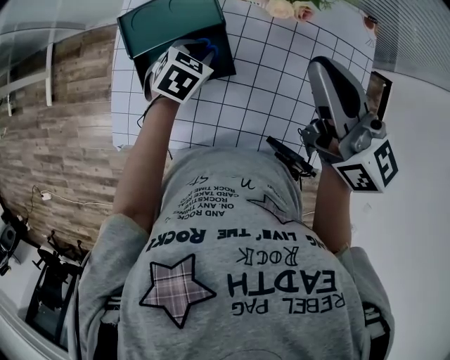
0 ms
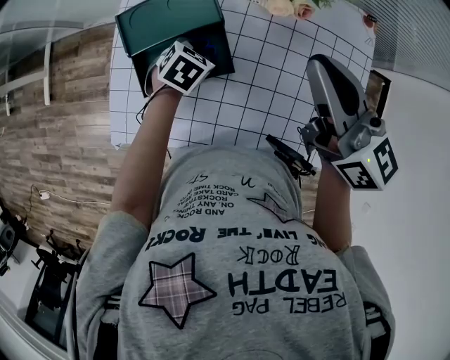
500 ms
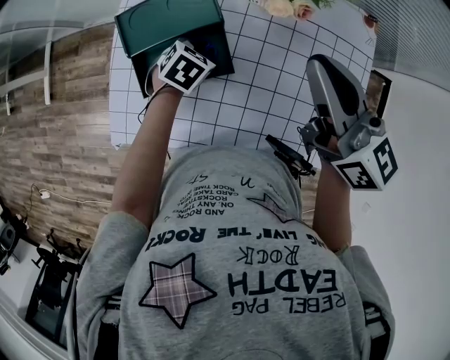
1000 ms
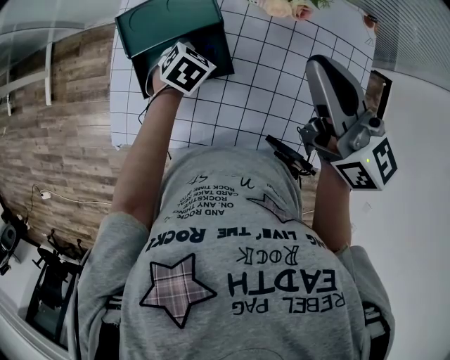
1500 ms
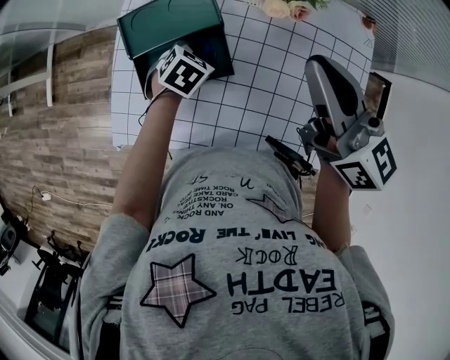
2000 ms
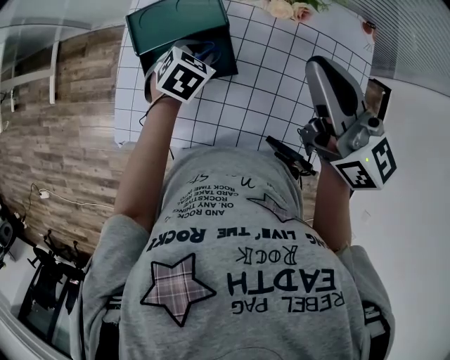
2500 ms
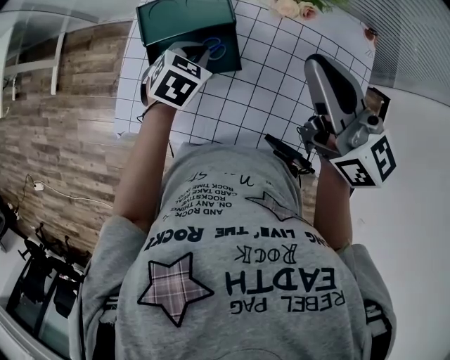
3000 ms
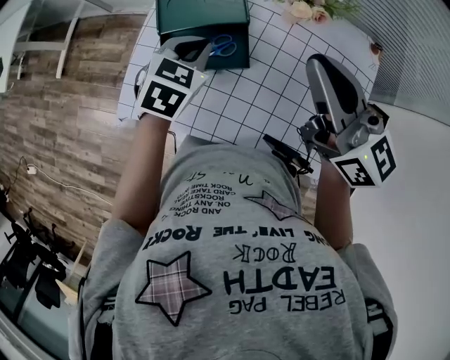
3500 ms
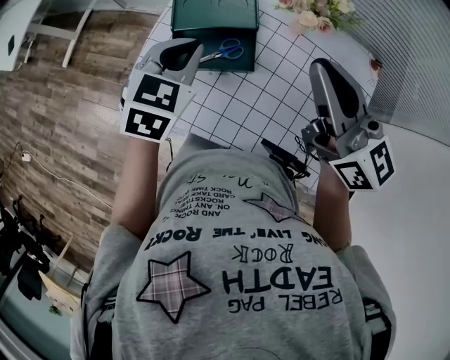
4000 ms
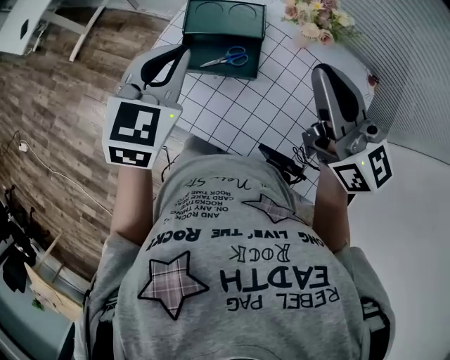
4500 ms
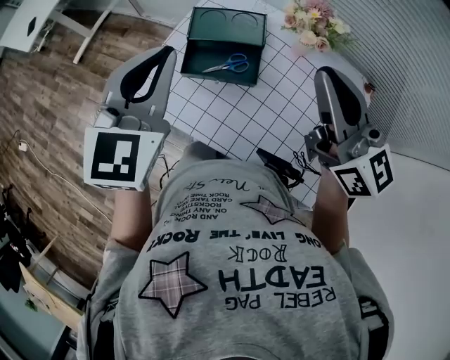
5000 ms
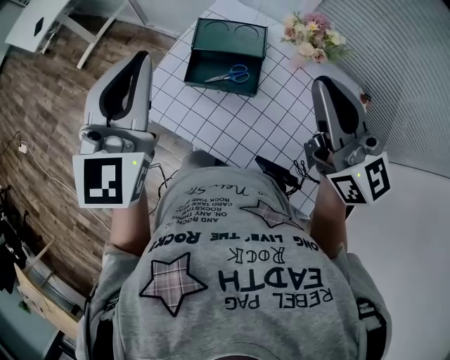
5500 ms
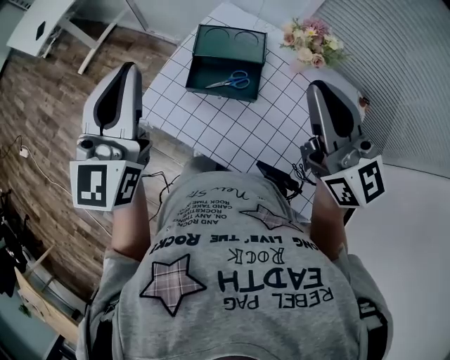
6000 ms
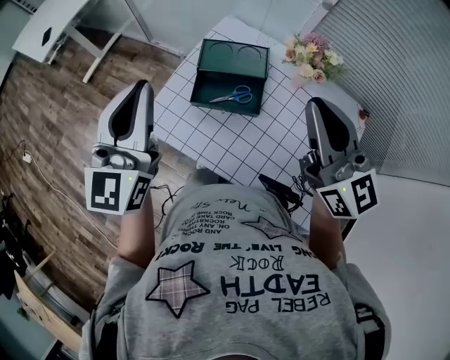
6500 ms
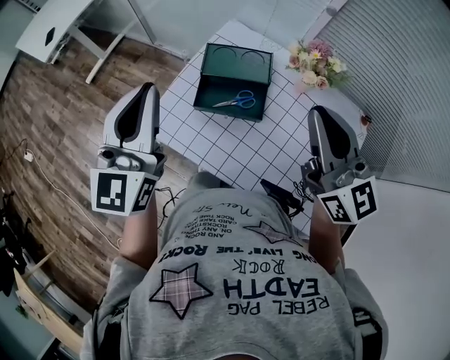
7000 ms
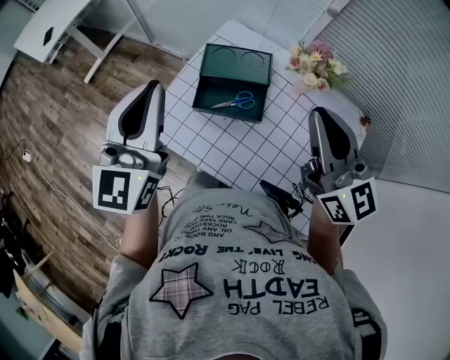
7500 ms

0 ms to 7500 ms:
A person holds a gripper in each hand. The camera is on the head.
0 ms to 2000 ms: The grippers move only a little.
2000 ms to 4000 ms: The left gripper shifts roughly 25 cm upward, changes its angle by some 30 degrees, and closes; the right gripper shifts some 5 cm upward.
4000 ms to 5500 ms: The left gripper is displaced upward and to the left by roughly 20 cm, and tilts its fingers roughly 40 degrees upward. Meanwhile the right gripper is displaced upward by some 5 cm.
5500 ms to 7500 ms: The grippers make only small movements.

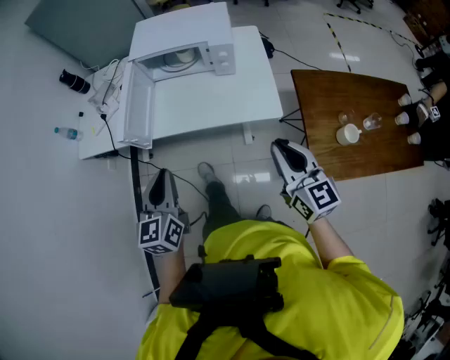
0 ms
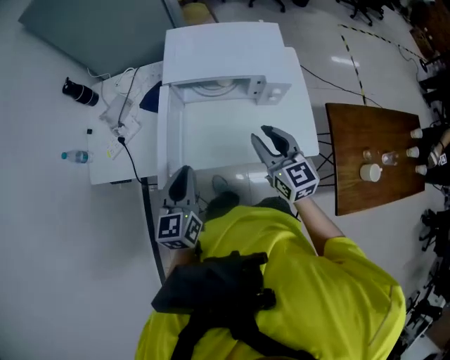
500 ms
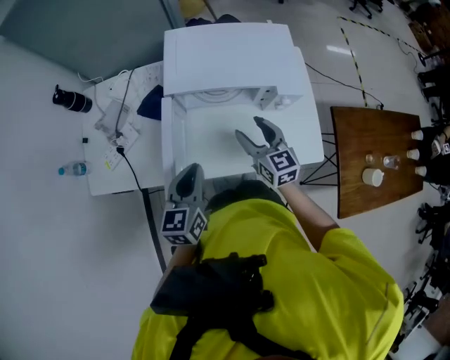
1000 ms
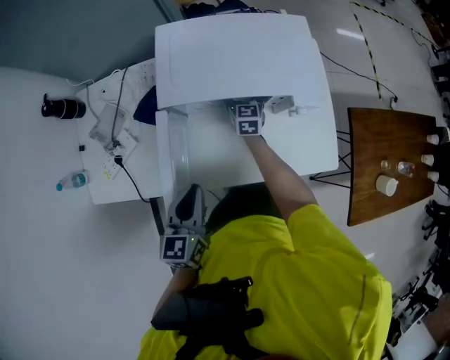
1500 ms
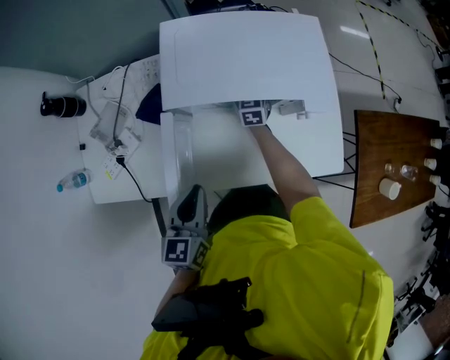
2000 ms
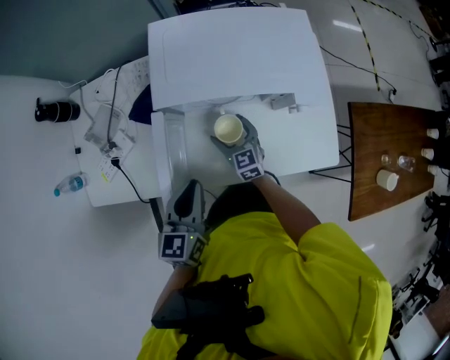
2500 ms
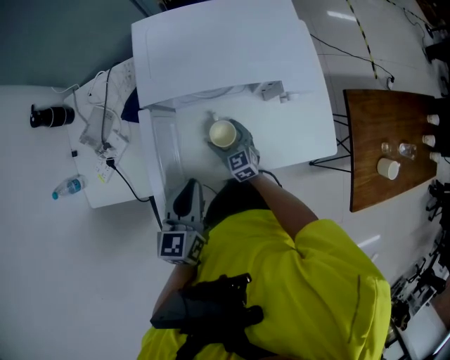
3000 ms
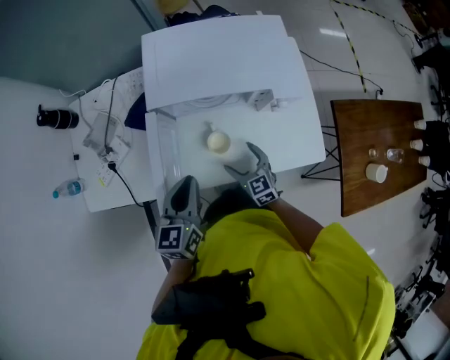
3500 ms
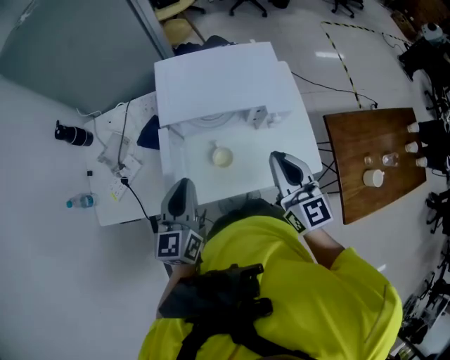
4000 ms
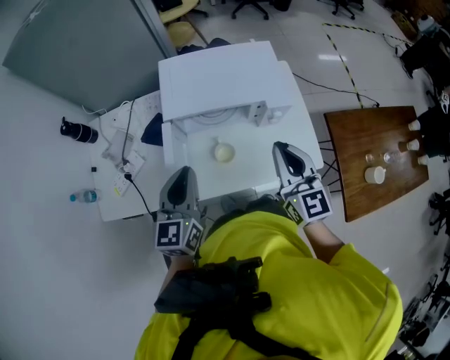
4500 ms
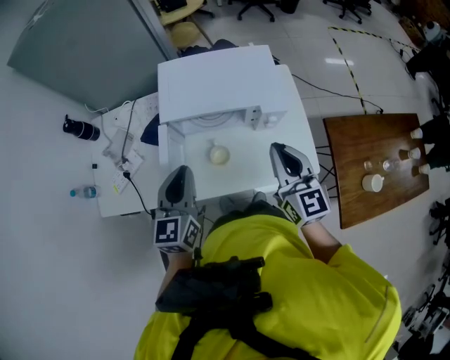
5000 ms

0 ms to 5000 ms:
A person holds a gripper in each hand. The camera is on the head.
0 ms to 2500 ms: The right gripper goes some 60 cm forward, downward and to the left, and opens its fingers, while the left gripper moves forward and to the left, roughly 35 cm.
2500 ms to 5000 ms: The left gripper travels upward by about 15 cm, while the right gripper goes approximately 40 cm upward and to the right, swivels roughly 20 degrees, and closes its fingers.

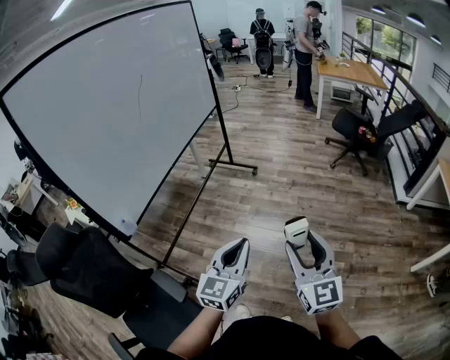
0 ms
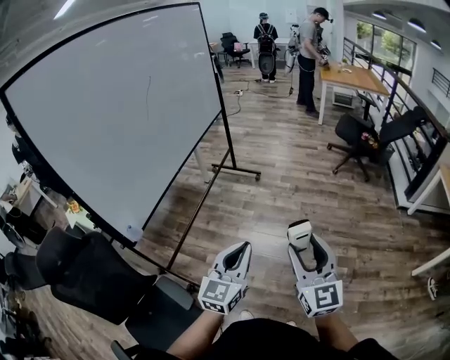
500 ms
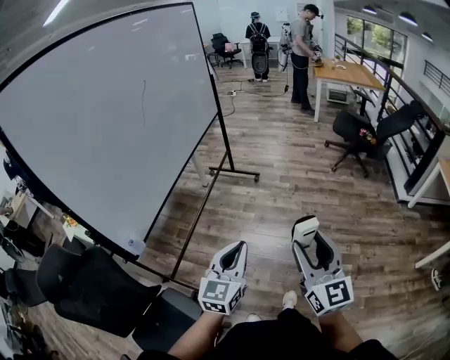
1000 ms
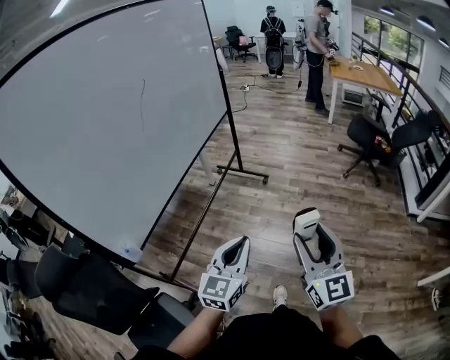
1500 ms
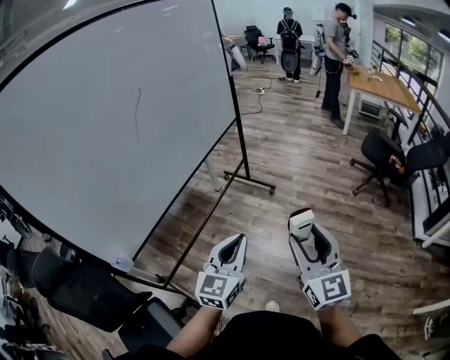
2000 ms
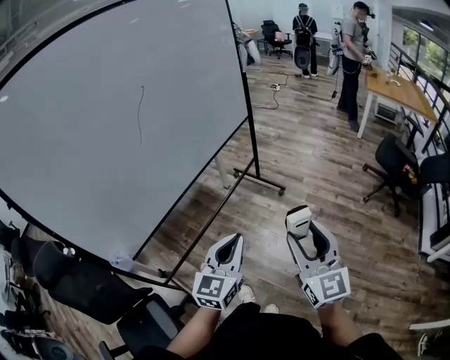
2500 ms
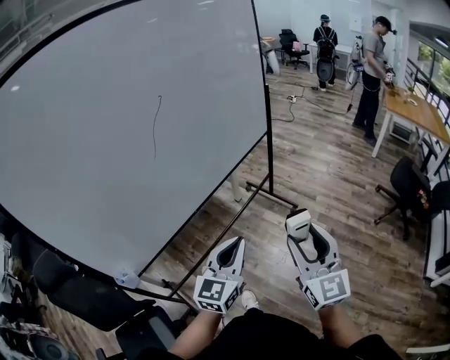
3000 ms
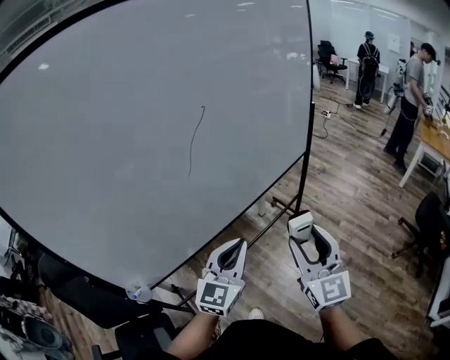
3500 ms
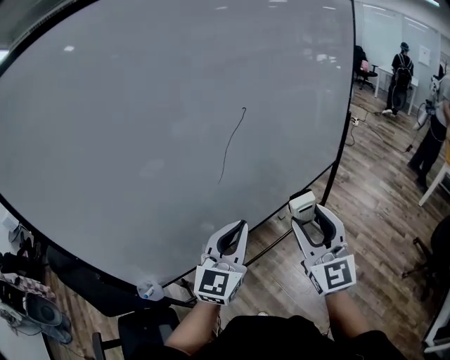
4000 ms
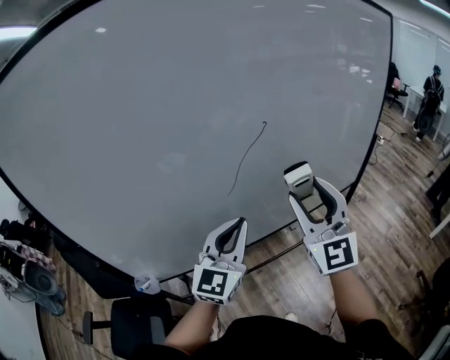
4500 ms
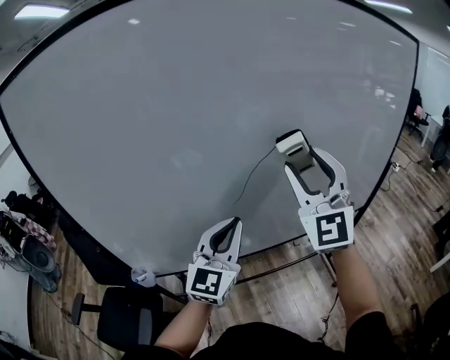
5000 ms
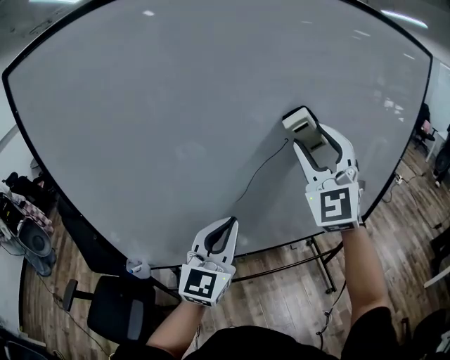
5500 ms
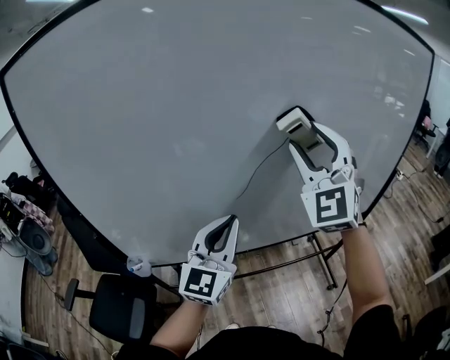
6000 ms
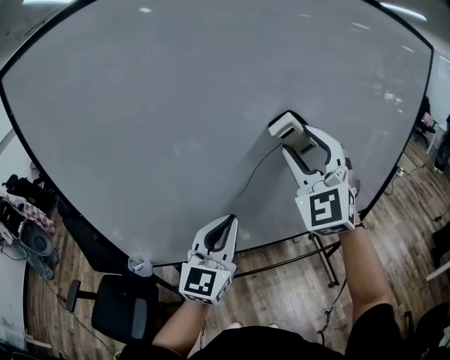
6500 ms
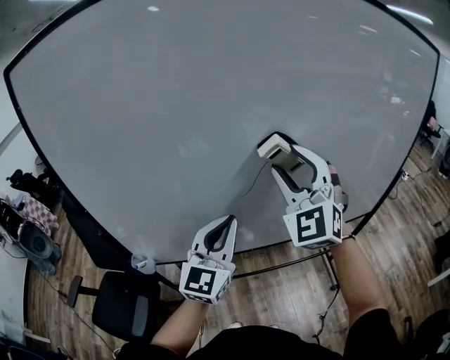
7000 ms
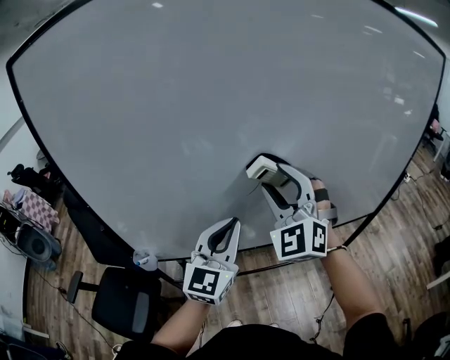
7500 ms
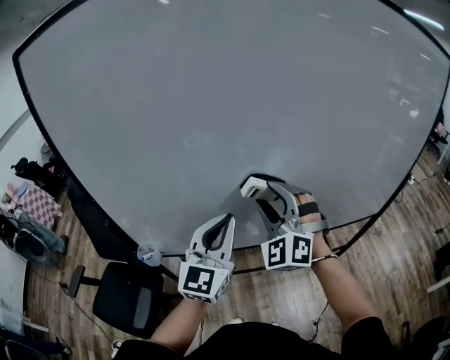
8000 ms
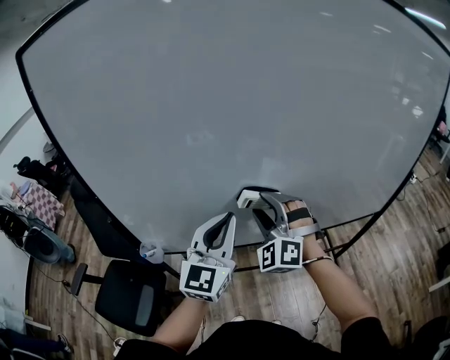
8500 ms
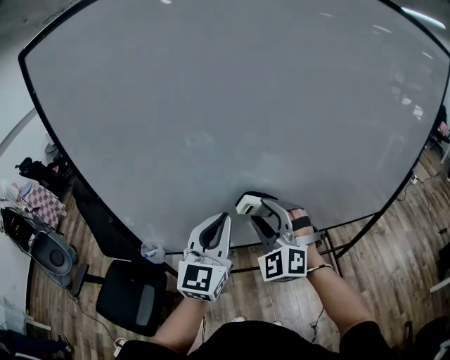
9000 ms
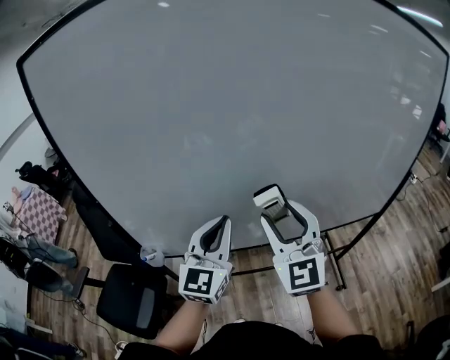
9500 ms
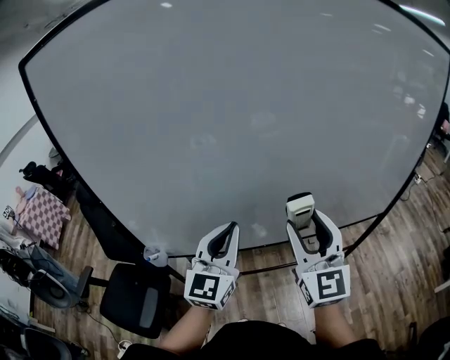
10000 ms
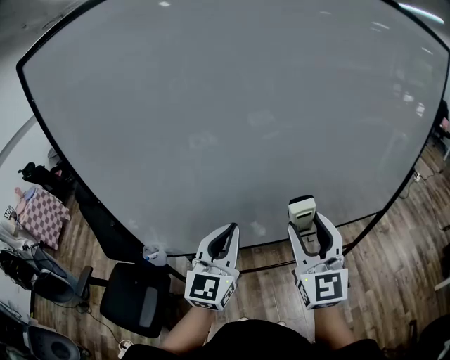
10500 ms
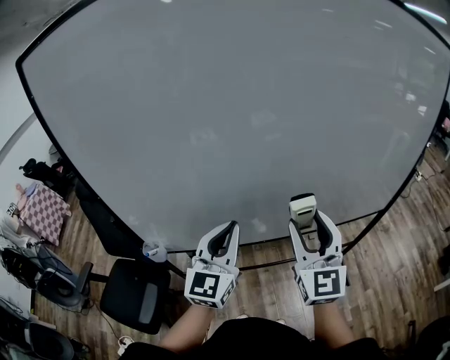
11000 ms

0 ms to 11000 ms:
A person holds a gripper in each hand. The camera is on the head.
0 ms to 2000 ms: The grippers both shift forward by roughly 30 cm.
2000 ms to 3500 ms: The grippers both shift forward and to the left by about 35 cm. The right gripper turns by about 20 degrees; the left gripper rotates approximately 20 degrees.
3500 ms to 5500 ms: The right gripper ends up some 40 cm from where it was, and rotates about 50 degrees; the left gripper changes place by roughly 20 cm, and changes its angle by approximately 30 degrees.
5500 ms to 7500 ms: The right gripper heads downward and to the left, covering approximately 15 cm.
7500 ms to 9000 ms: The right gripper goes some 10 cm downward.
9000 ms to 11000 ms: The right gripper travels to the right and backward by approximately 15 cm, and rolls clockwise, seen from behind, by roughly 50 degrees.

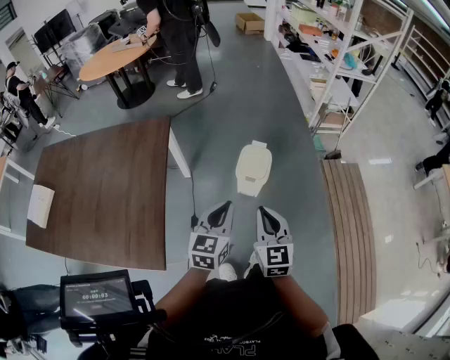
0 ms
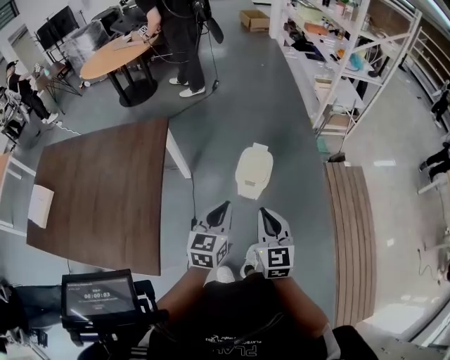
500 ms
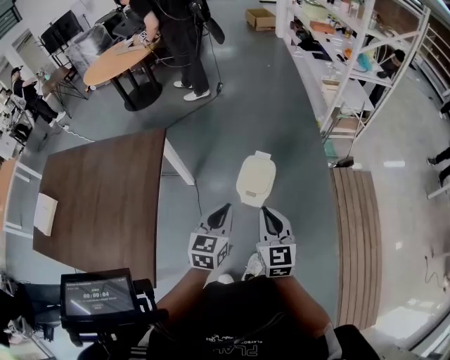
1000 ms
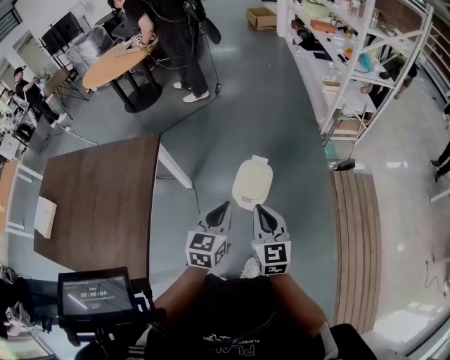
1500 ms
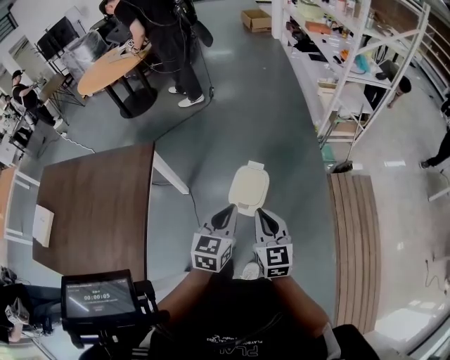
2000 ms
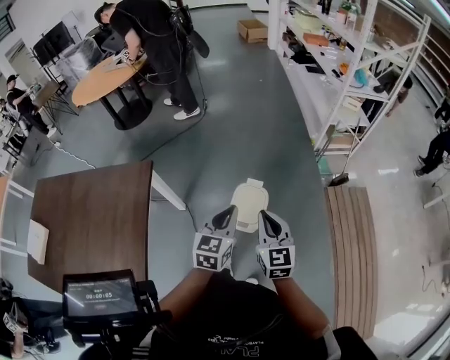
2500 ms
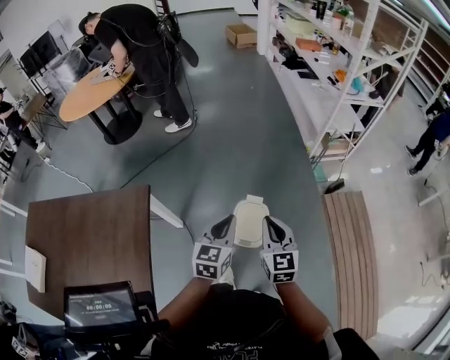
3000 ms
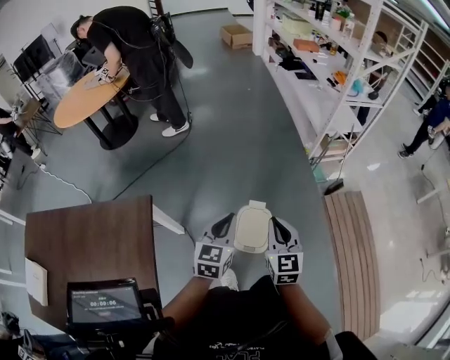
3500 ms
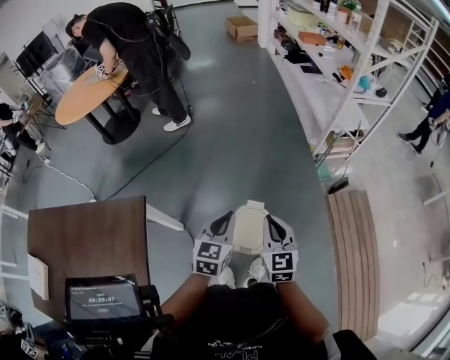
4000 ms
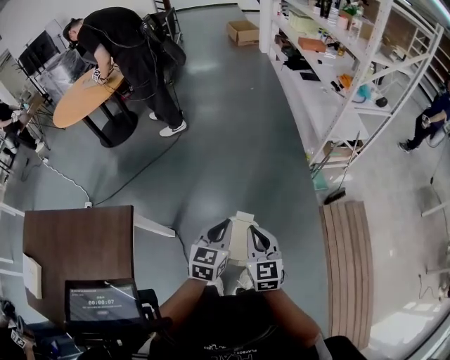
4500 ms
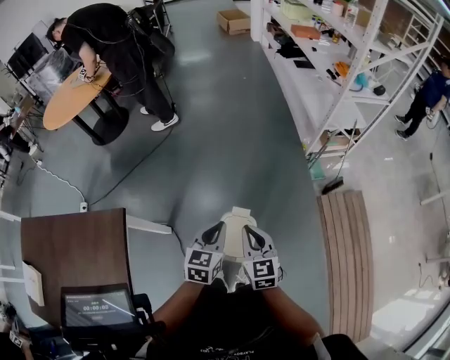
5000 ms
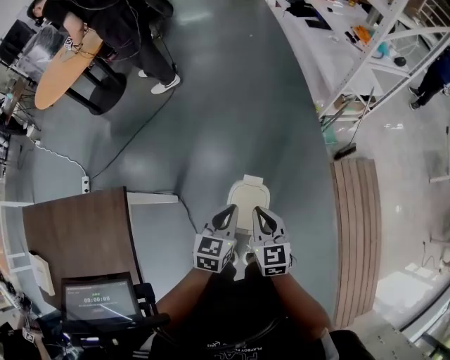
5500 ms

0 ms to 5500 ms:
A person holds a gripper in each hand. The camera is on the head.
0 ms to 2000 ms: Both grippers move forward and to the right, roughly 25 cm.
2000 ms to 3500 ms: The right gripper travels forward by some 20 cm; the left gripper shifts roughly 25 cm forward and to the left.
3500 ms to 5500 ms: The left gripper goes about 20 cm downward, forward and to the right; the right gripper is displaced downward and forward by some 15 cm.
